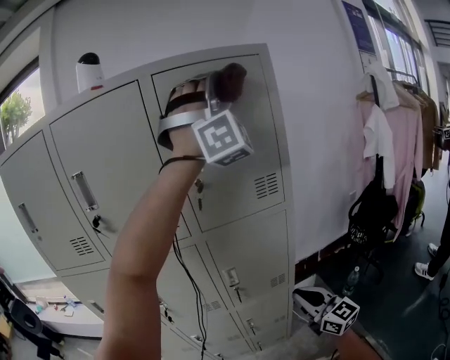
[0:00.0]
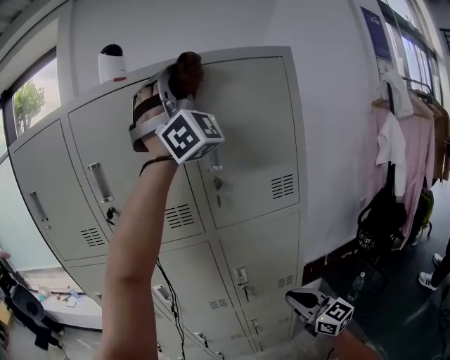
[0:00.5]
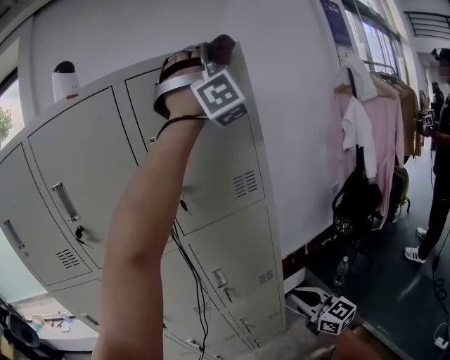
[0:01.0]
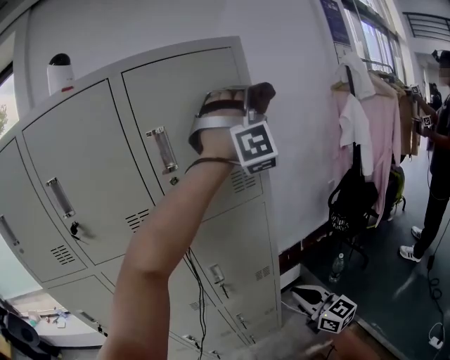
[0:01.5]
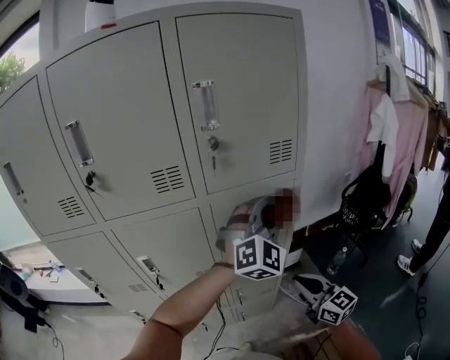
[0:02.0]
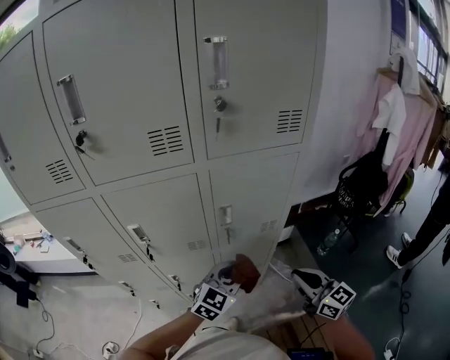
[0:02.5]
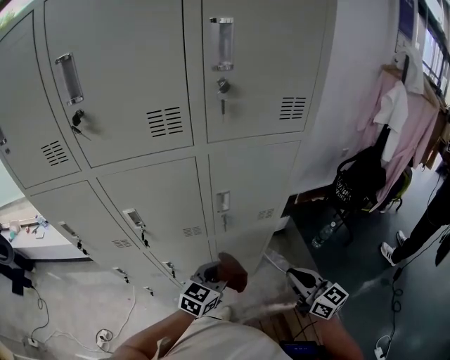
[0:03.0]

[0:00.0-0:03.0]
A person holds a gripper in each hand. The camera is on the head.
1.5 to 3.0 s: The right gripper goes approximately 10 cm downward.

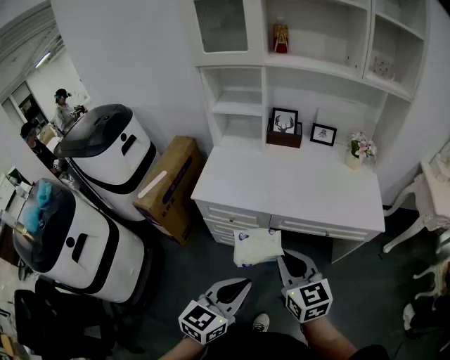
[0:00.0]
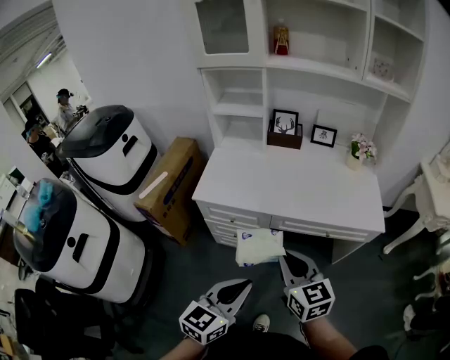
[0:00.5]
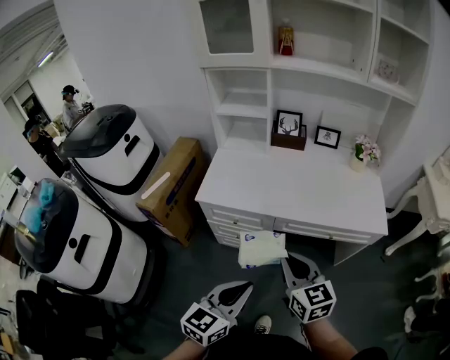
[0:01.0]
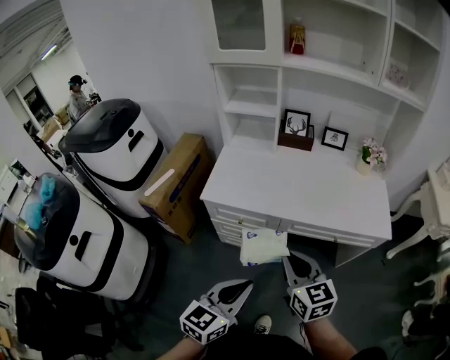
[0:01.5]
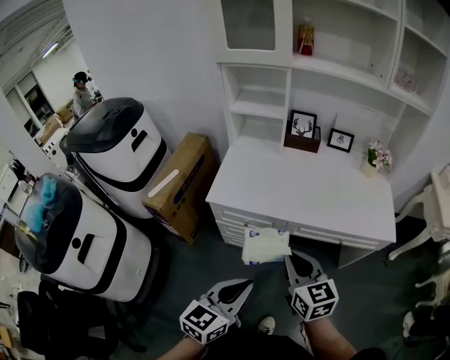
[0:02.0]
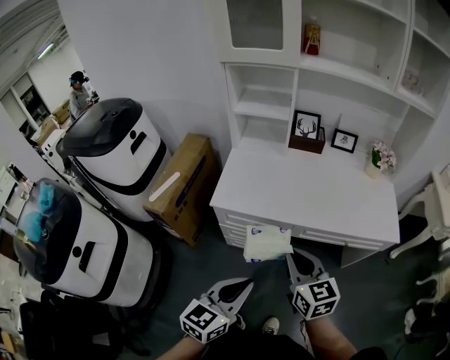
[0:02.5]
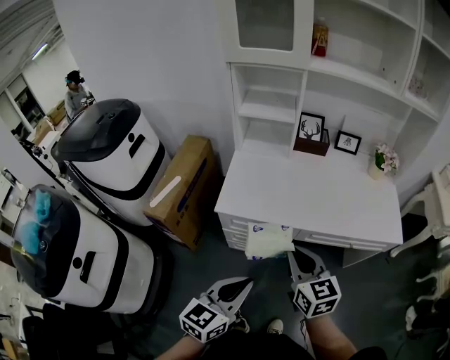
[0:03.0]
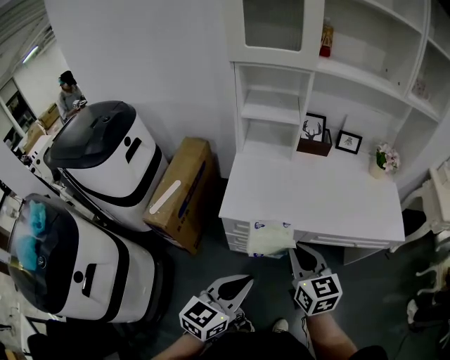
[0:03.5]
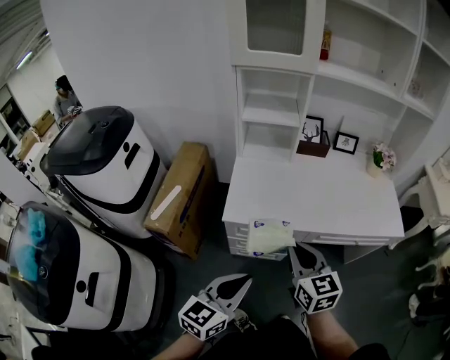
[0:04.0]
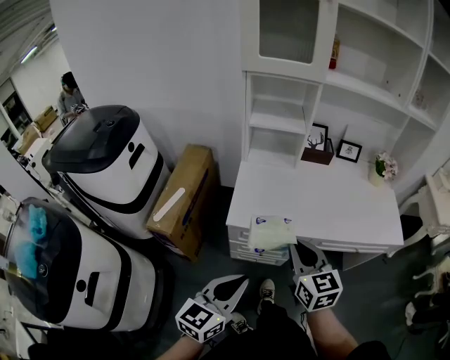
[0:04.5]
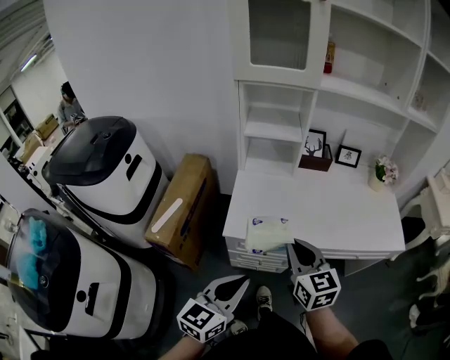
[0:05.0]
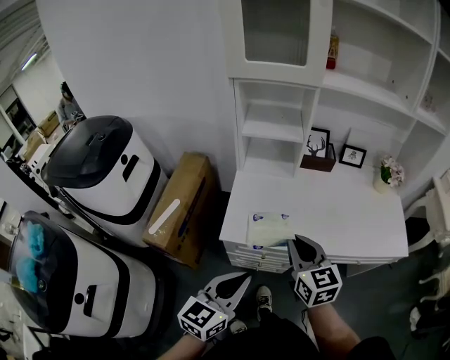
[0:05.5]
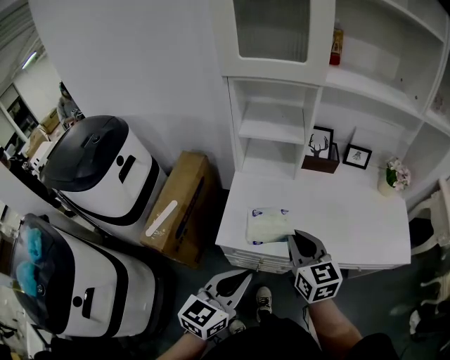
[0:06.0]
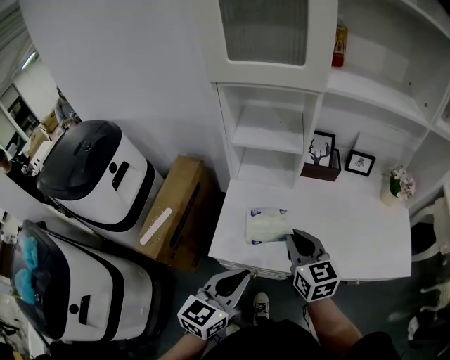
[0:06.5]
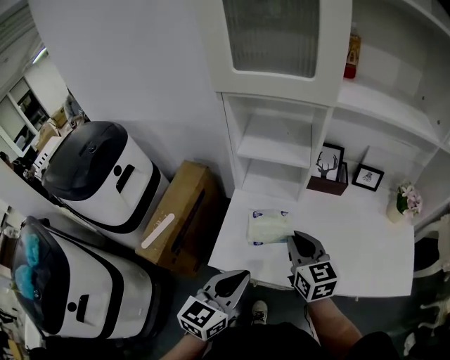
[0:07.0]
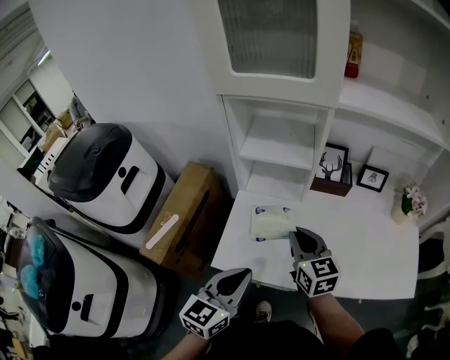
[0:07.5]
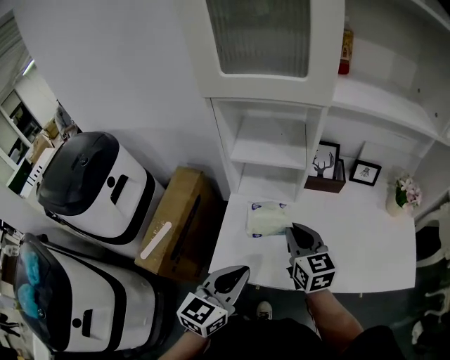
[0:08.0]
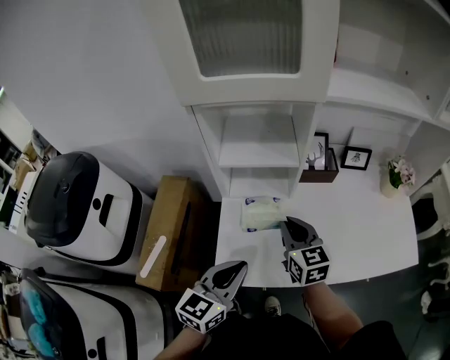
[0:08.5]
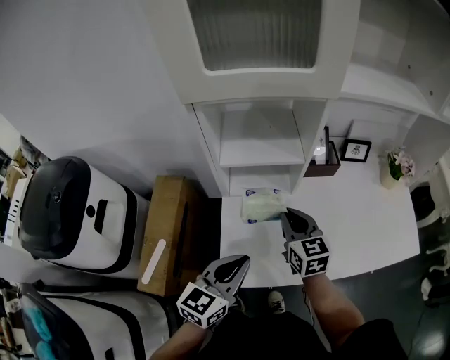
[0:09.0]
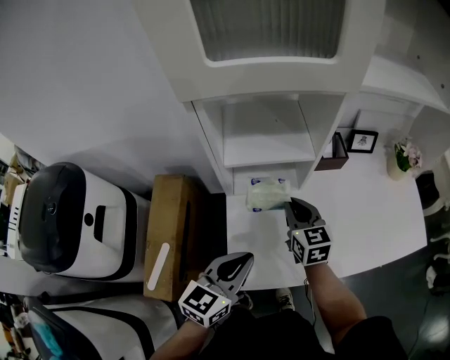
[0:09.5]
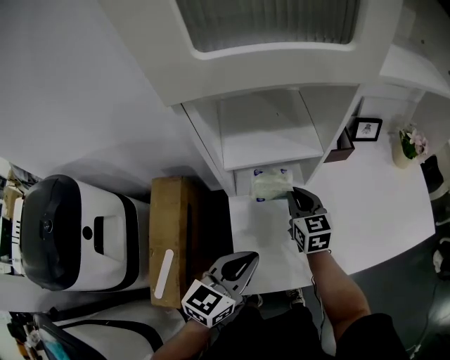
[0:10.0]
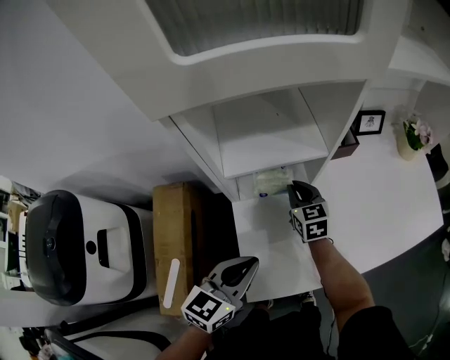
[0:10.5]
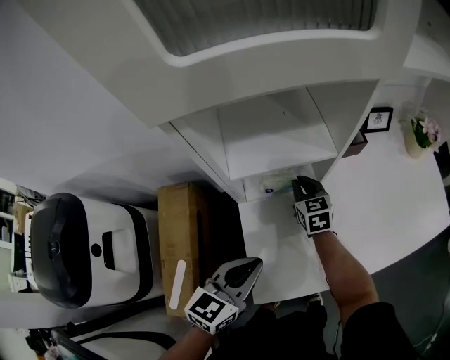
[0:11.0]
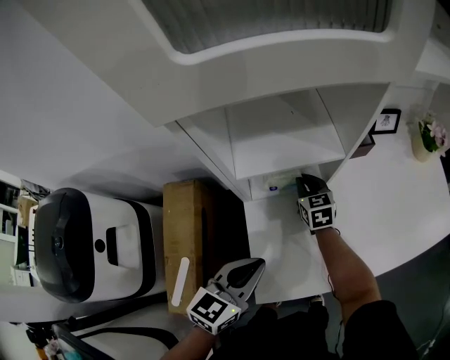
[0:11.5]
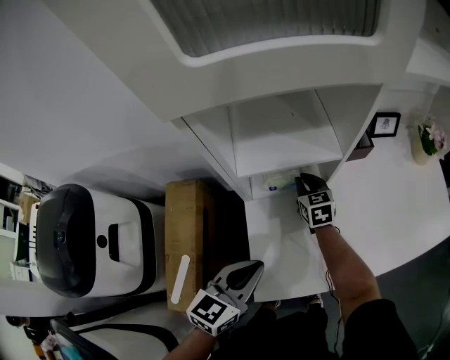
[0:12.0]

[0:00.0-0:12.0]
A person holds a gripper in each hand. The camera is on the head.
0.0 to 2.0 s: The right gripper moves approximately 5 cm. The left gripper heads to the left, covering some 5 cm.
2.0 to 4.0 s: The grippers both shift to the left and forward by approximately 15 cm.
4.0 to 6.0 s: Both grippers move forward, about 15 cm.
6.0 to 8.0 s: The grippers both shift forward by some 15 cm.
8.0 to 10.0 s: The left gripper travels forward, to the left and downward by some 15 cm, and turns by about 20 degrees; the right gripper heads forward, downward and to the left, covering roughly 20 cm.
10.0 to 12.0 s: The right gripper travels downward and forward by approximately 10 cm.

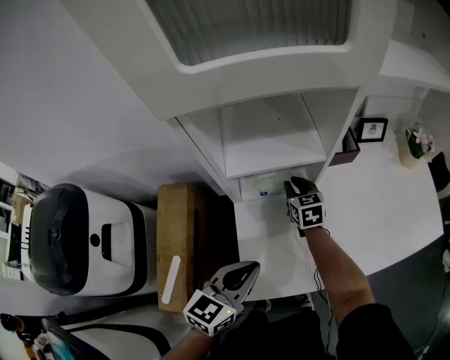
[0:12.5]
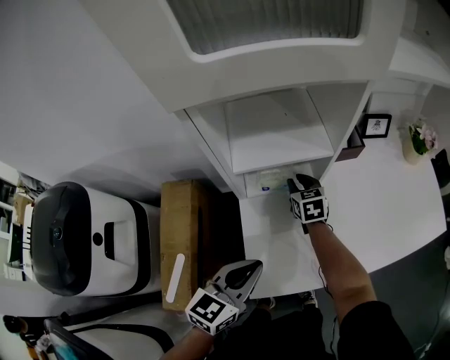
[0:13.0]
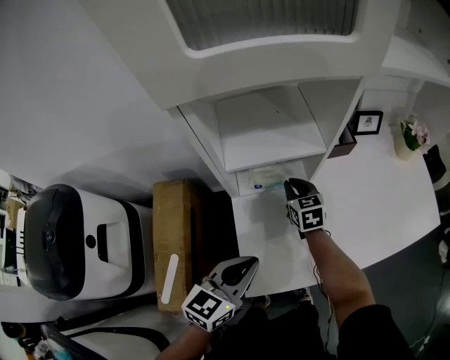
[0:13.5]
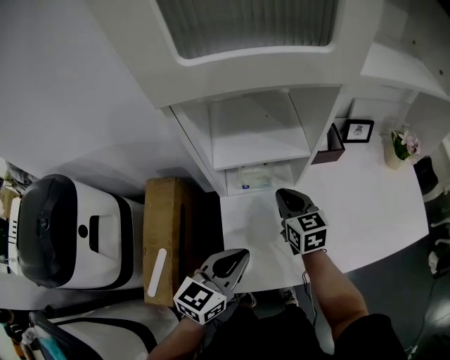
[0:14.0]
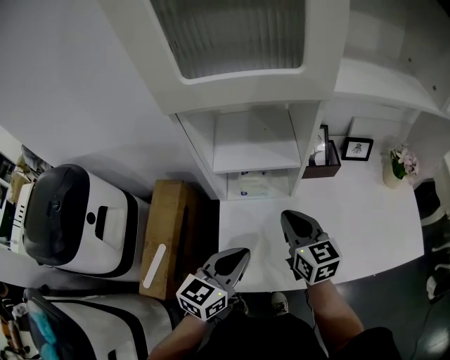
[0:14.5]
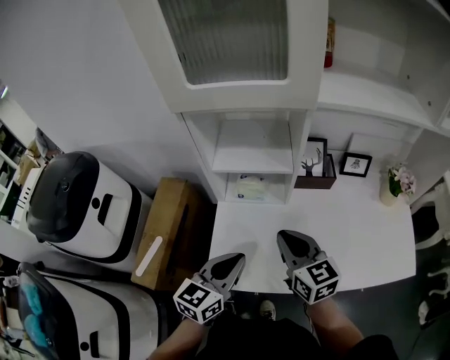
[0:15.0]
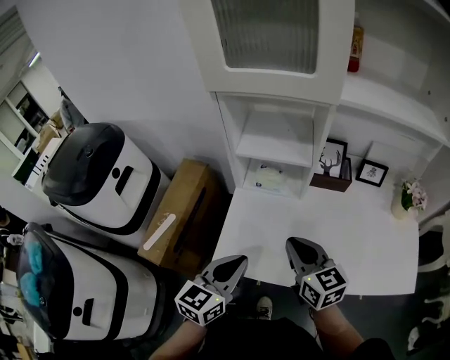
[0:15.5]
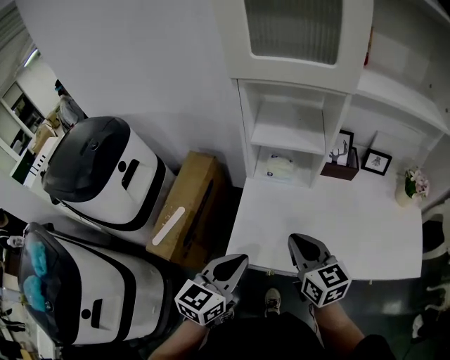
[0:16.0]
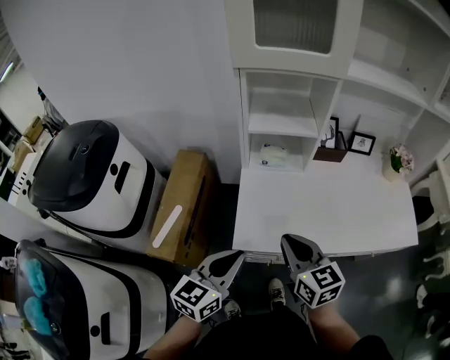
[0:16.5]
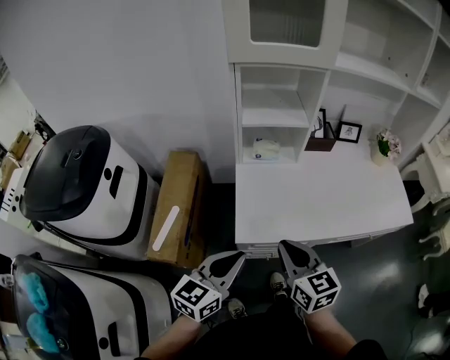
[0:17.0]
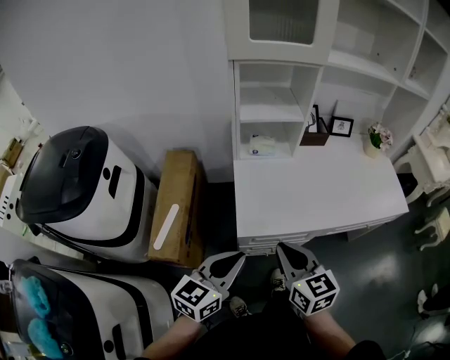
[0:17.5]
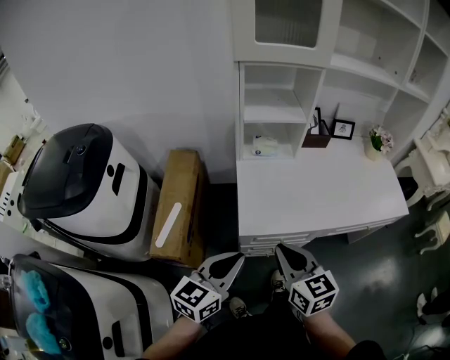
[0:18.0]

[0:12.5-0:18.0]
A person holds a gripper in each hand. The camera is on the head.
12.5 to 14.5 s: The left gripper ends up some 5 cm from where it was. The right gripper goes approximately 20 cm upward and backward.
14.5 to 16.0 s: The grippers both shift backward by about 15 cm.
16.0 to 18.0 s: Both grippers travel together backward and to the left, about 20 cm.

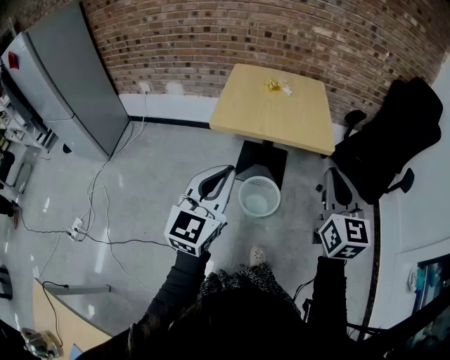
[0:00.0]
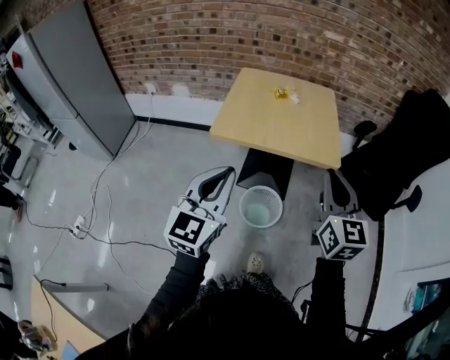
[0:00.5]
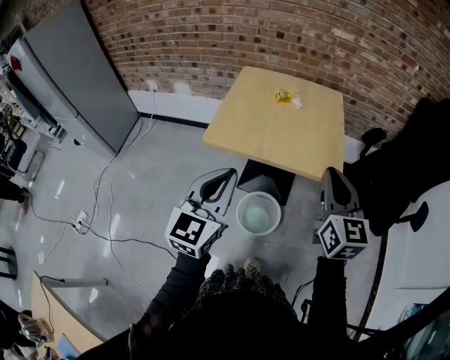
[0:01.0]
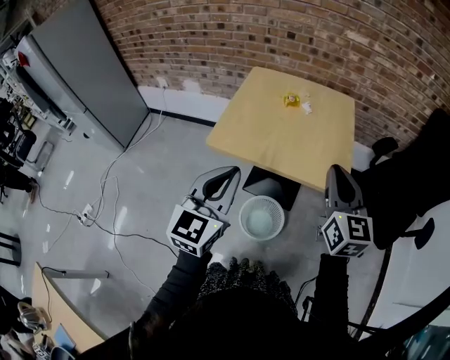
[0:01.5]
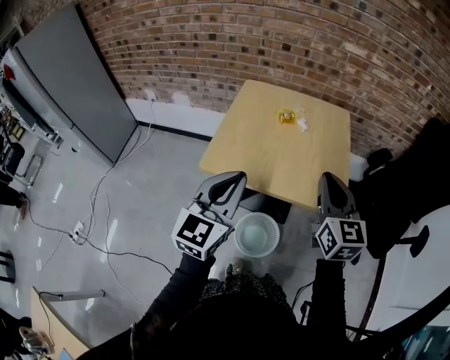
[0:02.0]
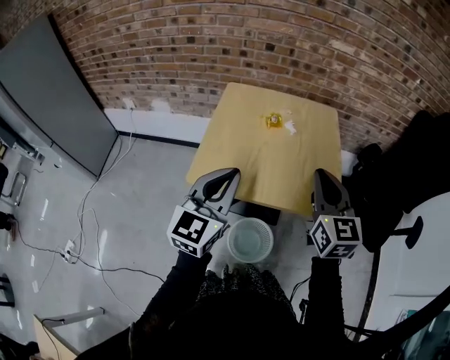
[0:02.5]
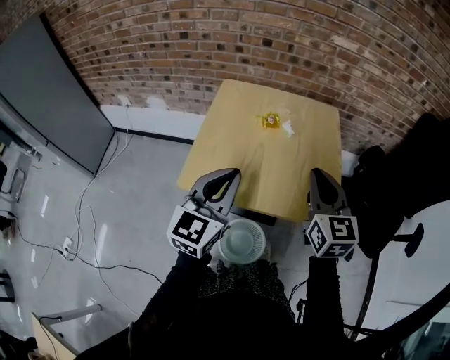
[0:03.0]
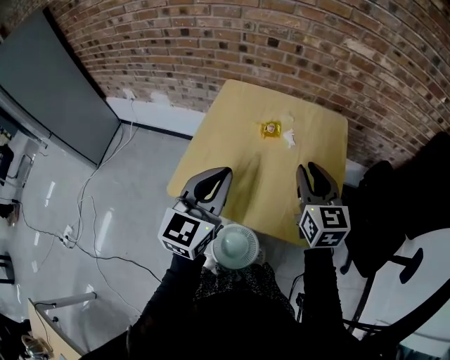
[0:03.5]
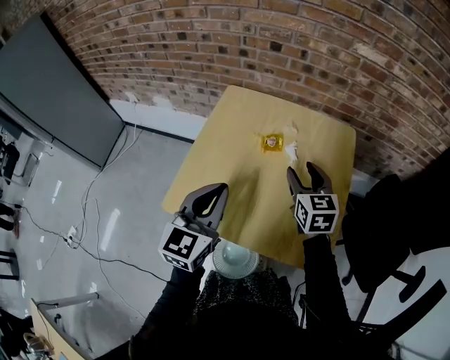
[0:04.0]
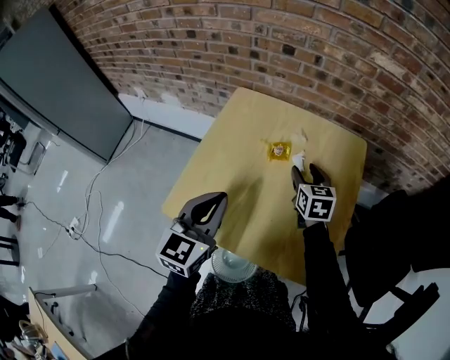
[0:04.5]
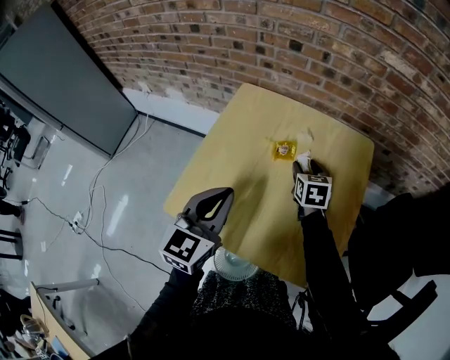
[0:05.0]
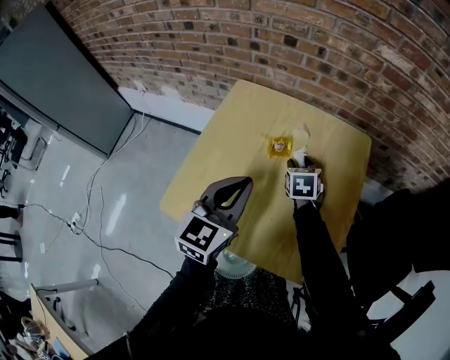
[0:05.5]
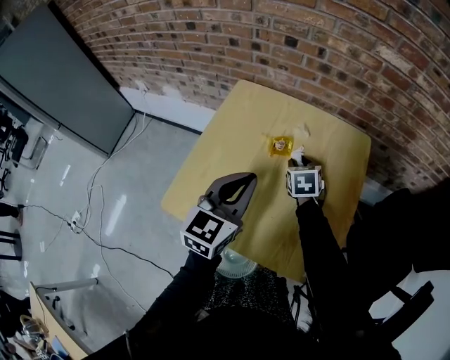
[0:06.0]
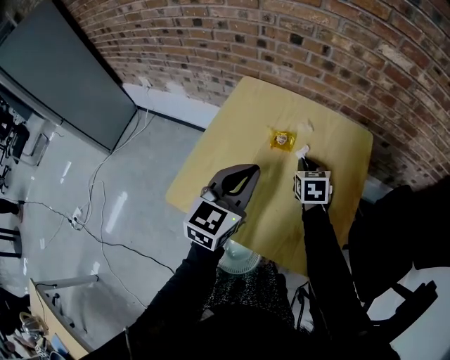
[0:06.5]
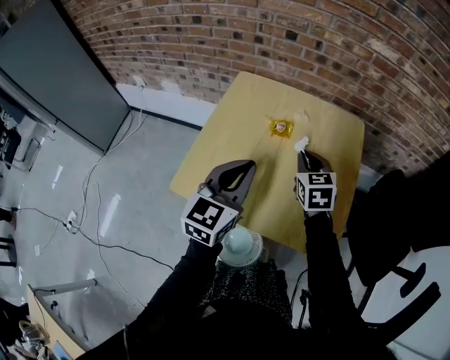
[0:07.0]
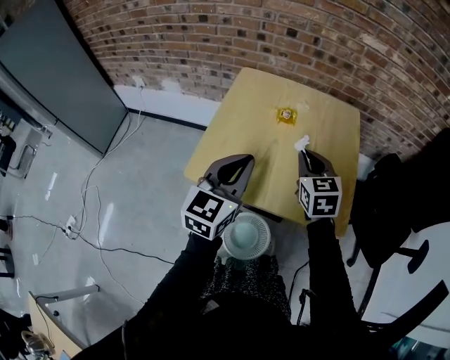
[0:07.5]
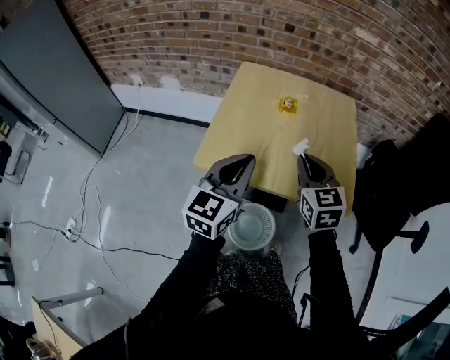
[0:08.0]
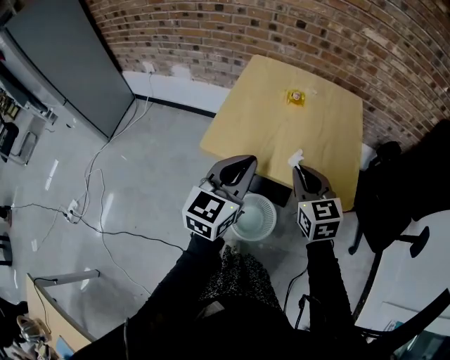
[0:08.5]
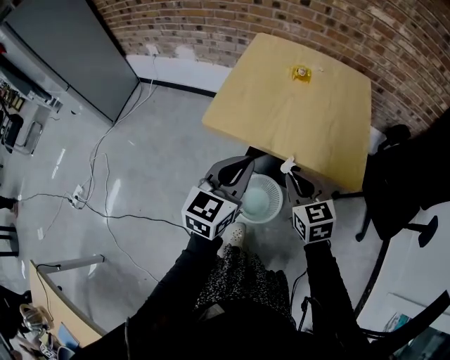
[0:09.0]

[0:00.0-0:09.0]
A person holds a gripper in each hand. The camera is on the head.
0.0 to 2.0 s: The two grippers go about 25 cm forward.
2.0 to 4.5 s: The left gripper goes about 25 cm forward and downward, while the right gripper travels forward and downward by some 40 cm, turns by approximately 30 degrees, and opens.
4.5 to 7.0 s: The right gripper is displaced backward by roughly 5 cm, and closes.
7.0 to 9.0 s: Both grippers travel together backward, roughly 25 cm.
